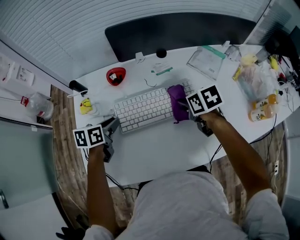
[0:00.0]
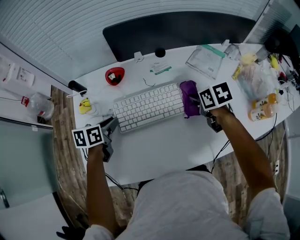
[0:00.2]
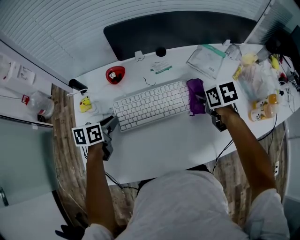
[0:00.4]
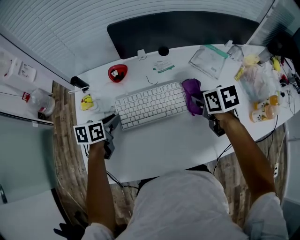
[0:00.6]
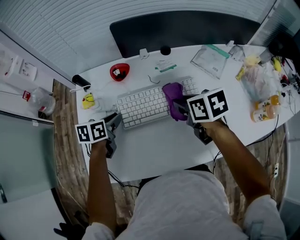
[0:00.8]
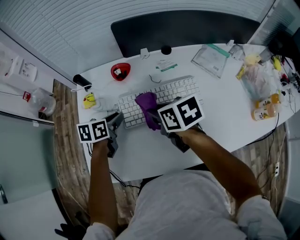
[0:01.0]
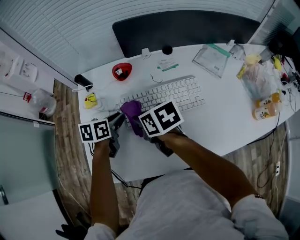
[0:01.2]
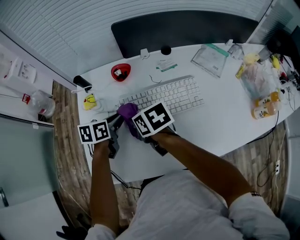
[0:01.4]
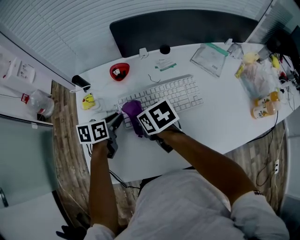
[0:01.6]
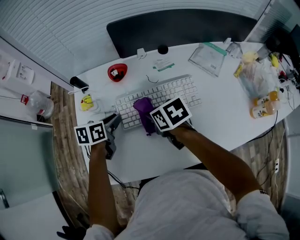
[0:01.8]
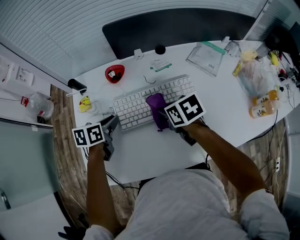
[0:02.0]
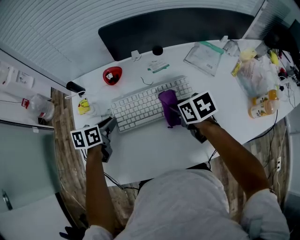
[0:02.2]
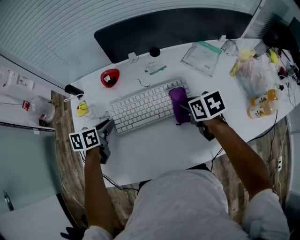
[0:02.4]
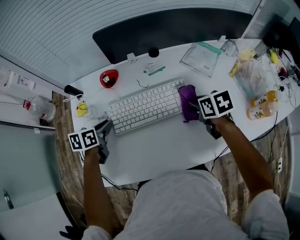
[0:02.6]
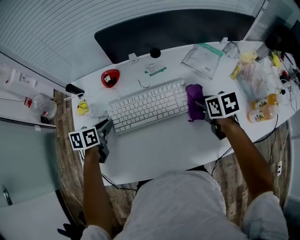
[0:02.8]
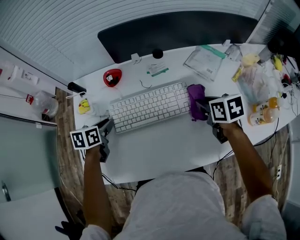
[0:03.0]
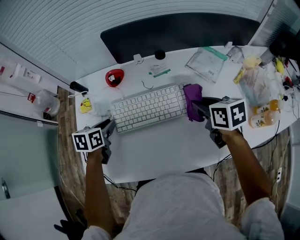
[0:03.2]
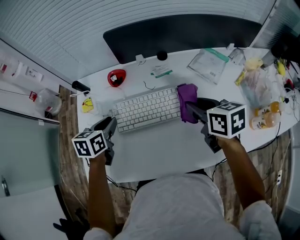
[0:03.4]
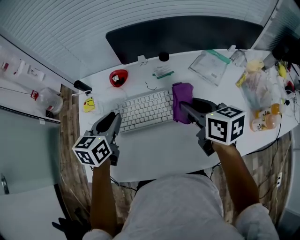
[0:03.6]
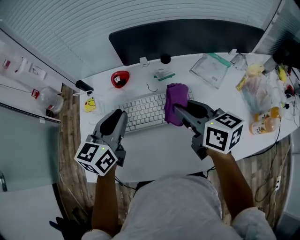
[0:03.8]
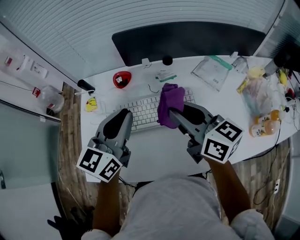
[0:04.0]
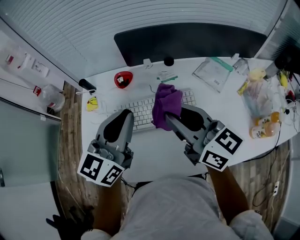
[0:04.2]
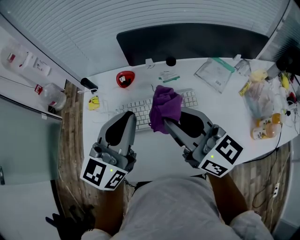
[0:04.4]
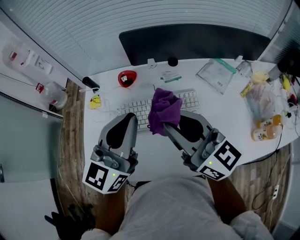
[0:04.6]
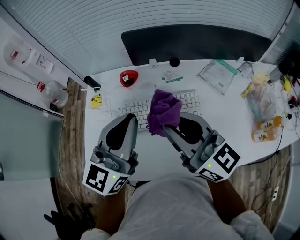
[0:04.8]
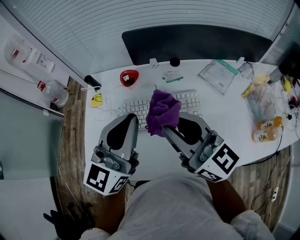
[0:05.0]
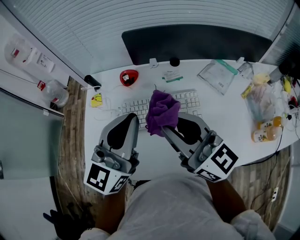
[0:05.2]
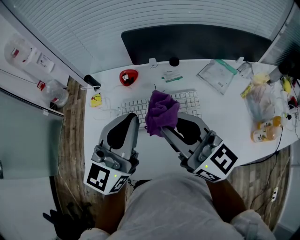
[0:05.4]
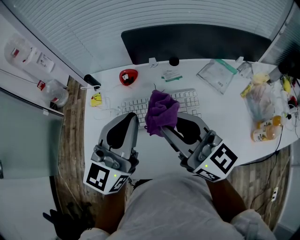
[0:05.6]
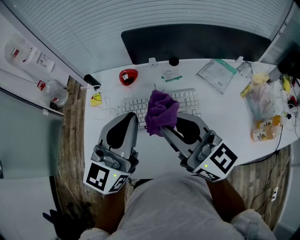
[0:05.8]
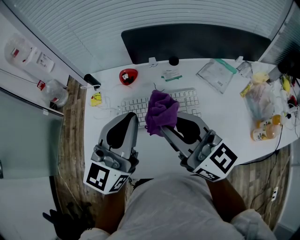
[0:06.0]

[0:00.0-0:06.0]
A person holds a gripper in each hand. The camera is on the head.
0:00.0 to 0:01.6: The right gripper goes about 20 cm to the left.
0:01.6 to 0:03.0: The right gripper travels to the right by roughly 30 cm.
0:03.0 to 0:04.4: The left gripper heads upward and to the right, covering some 25 cm, and points its fingers roughly 50 degrees further upward, while the right gripper heads upward and to the left, covering about 25 cm, and angles its fingers upward, by approximately 50 degrees.
0:04.4 to 0:06.0: The grippers move only a little.

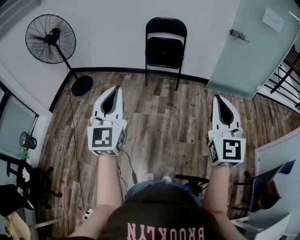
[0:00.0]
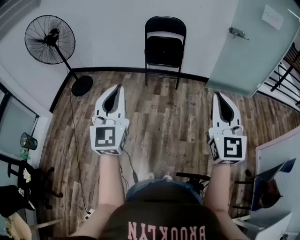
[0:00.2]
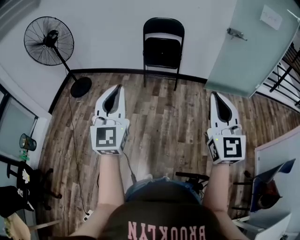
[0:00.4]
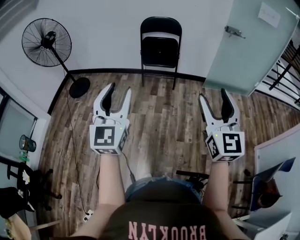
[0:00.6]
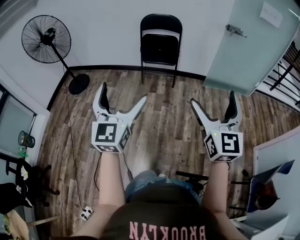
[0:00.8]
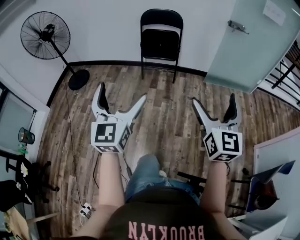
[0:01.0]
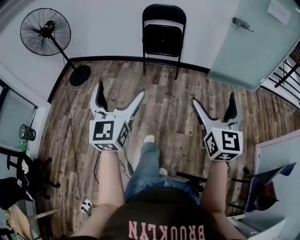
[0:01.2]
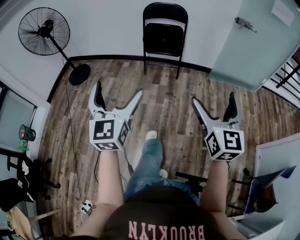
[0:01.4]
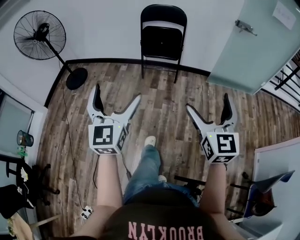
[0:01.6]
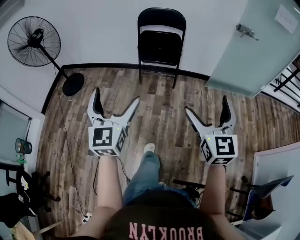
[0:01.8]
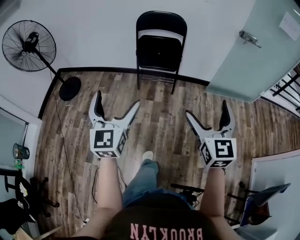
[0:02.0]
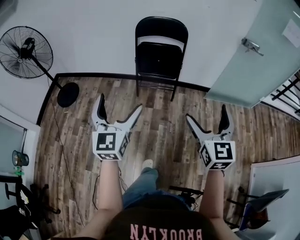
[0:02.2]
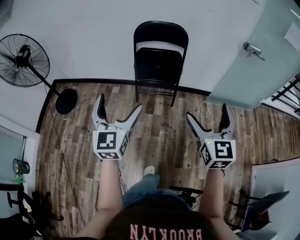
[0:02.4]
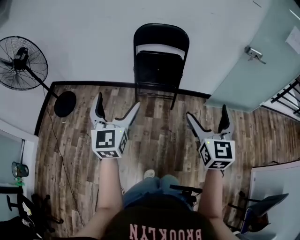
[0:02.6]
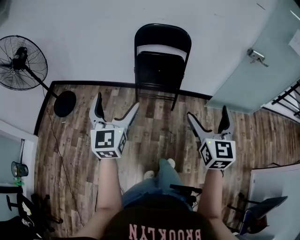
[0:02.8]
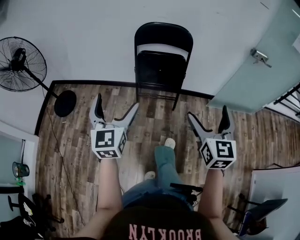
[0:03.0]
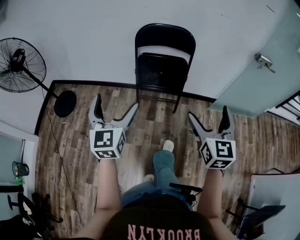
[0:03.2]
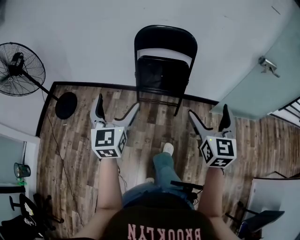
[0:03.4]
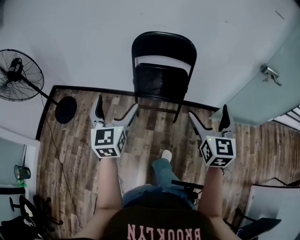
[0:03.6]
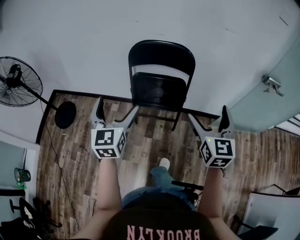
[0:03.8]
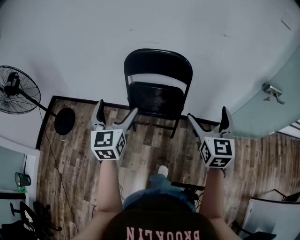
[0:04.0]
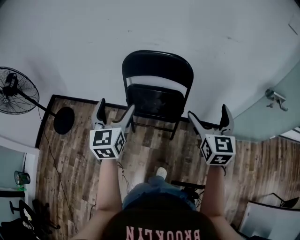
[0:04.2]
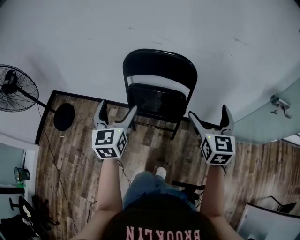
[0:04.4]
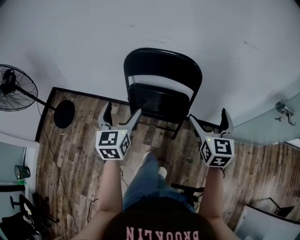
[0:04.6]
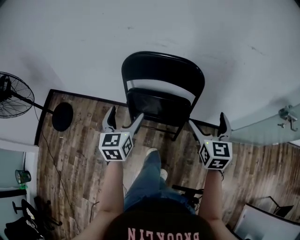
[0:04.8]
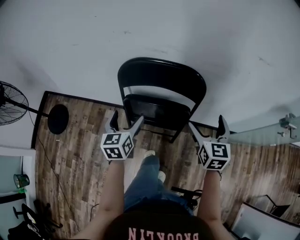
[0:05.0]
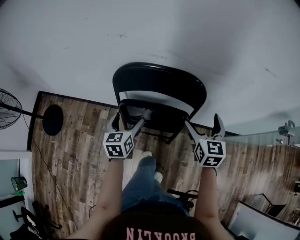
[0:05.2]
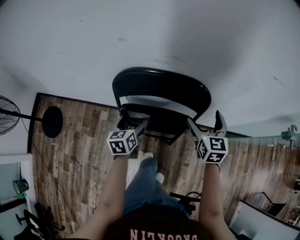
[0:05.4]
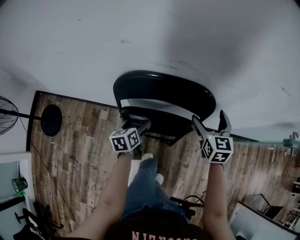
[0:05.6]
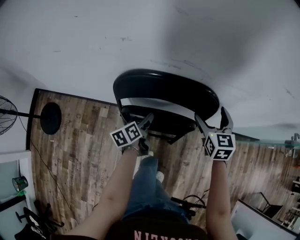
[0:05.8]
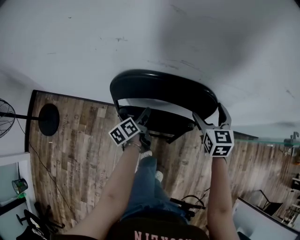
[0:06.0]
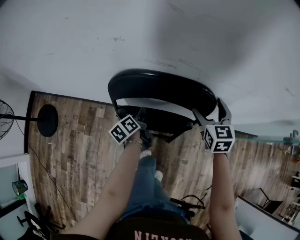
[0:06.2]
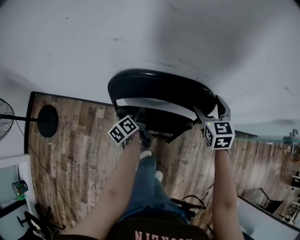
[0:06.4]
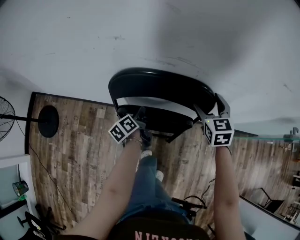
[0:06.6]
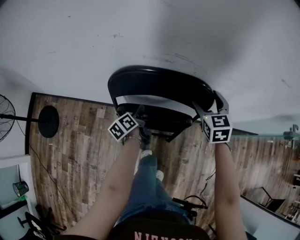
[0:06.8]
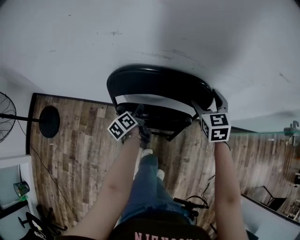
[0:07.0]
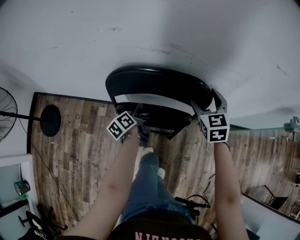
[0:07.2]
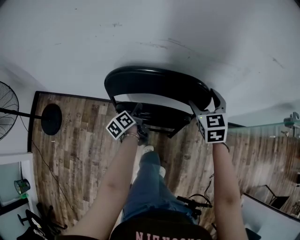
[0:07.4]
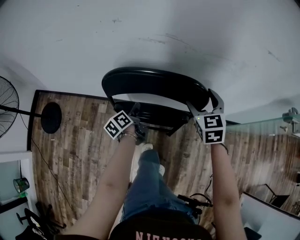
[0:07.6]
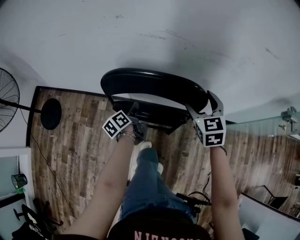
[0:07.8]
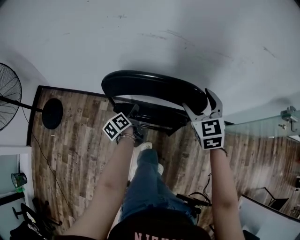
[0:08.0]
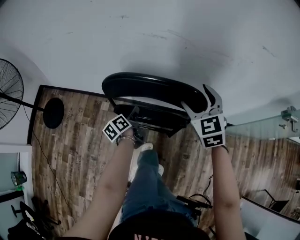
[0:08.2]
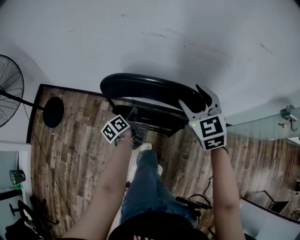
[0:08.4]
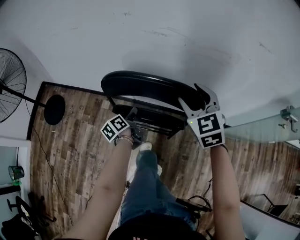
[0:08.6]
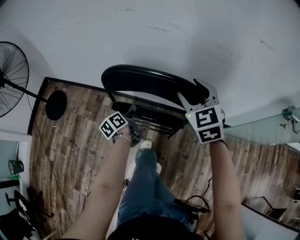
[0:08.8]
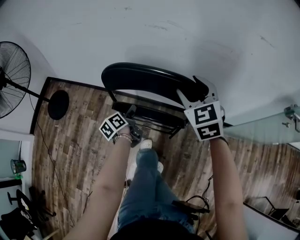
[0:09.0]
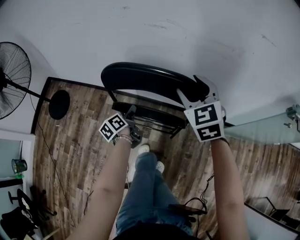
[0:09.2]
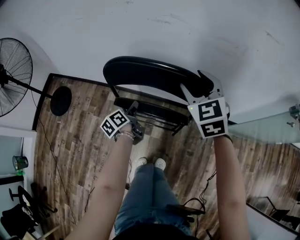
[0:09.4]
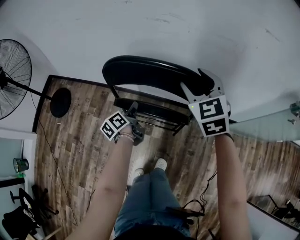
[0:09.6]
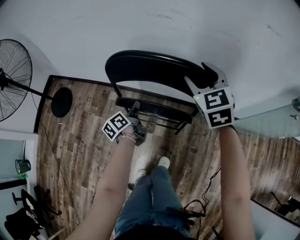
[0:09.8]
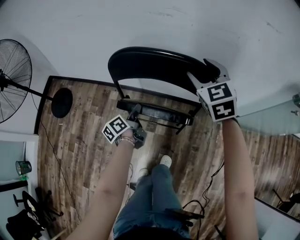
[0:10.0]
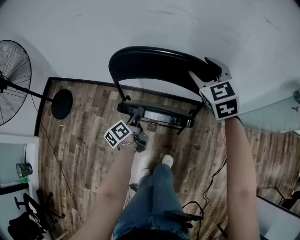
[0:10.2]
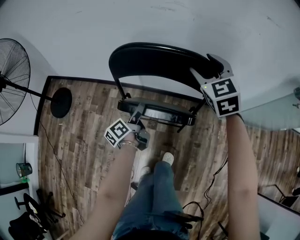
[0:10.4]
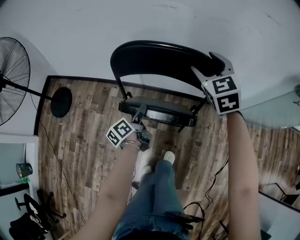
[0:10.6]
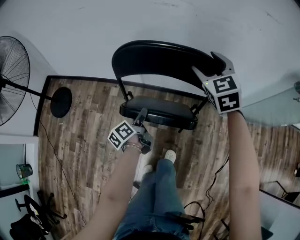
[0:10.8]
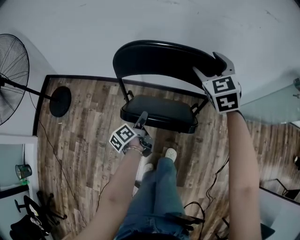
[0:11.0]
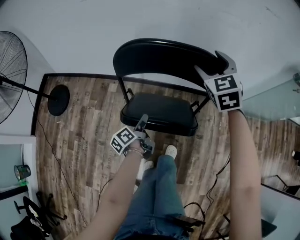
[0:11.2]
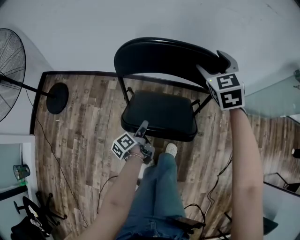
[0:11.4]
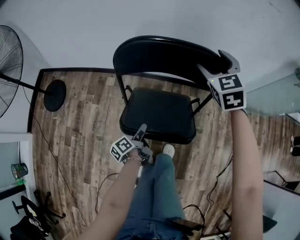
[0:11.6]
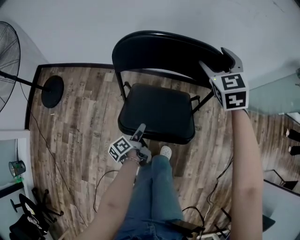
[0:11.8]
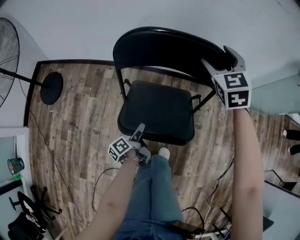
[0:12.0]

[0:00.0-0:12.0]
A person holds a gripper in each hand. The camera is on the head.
0:00.0 to 0:01.6: The left gripper travels forward, downward and to the right by about 15 cm, and opens its fingers. The right gripper goes some 15 cm forward and downward, and opens up.
0:01.6 to 0:03.0: The two grippers go about 40 cm forward.
0:03.0 to 0:04.4: Both grippers move forward, roughly 35 cm.
0:04.4 to 0:06.0: The left gripper moves downward and forward, some 40 cm, and rotates around the line of its fingers by approximately 60 degrees, counterclockwise from behind; the right gripper heads forward and downward, covering about 30 cm.
0:06.0 to 0:07.6: Both grippers travel together backward, about 5 cm. The left gripper closes its fingers.
0:07.6 to 0:09.0: The right gripper goes roughly 10 cm backward, to the left and upward; the left gripper is displaced backward by roughly 10 cm.
0:09.0 to 0:10.4: The left gripper is displaced backward by approximately 5 cm.
0:10.4 to 0:12.0: The left gripper goes some 25 cm backward and downward, and swivels some 20 degrees, while the right gripper heads backward and downward, covering some 10 cm.

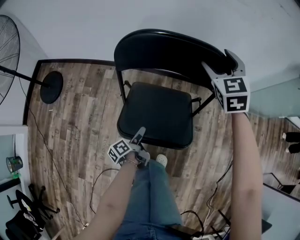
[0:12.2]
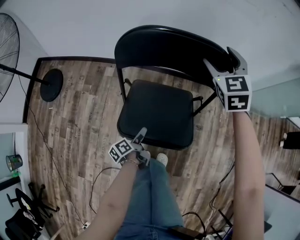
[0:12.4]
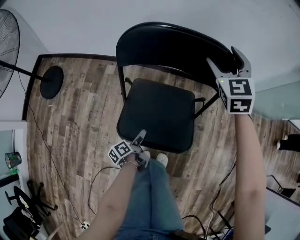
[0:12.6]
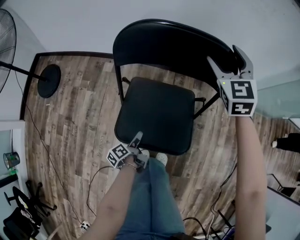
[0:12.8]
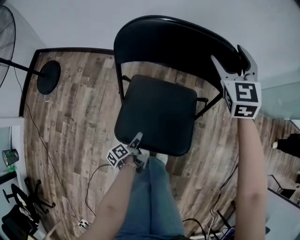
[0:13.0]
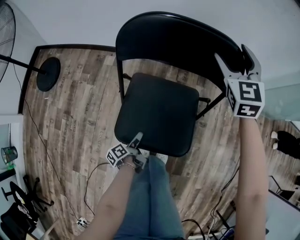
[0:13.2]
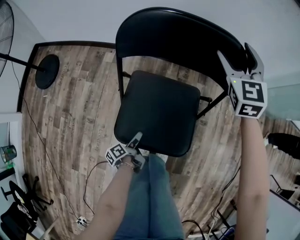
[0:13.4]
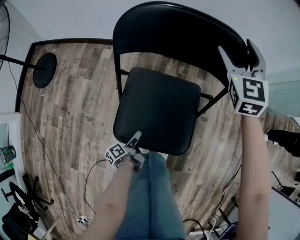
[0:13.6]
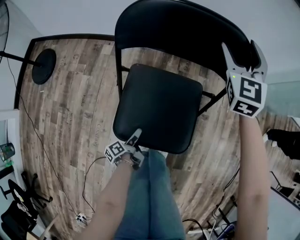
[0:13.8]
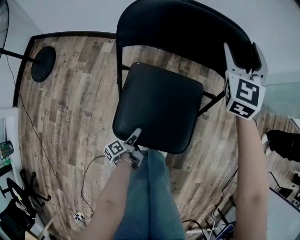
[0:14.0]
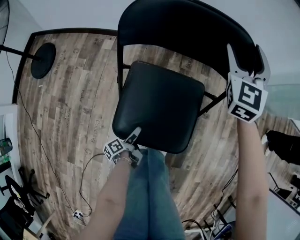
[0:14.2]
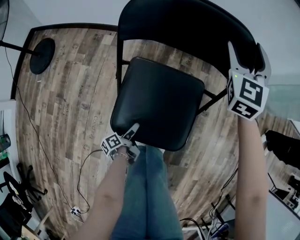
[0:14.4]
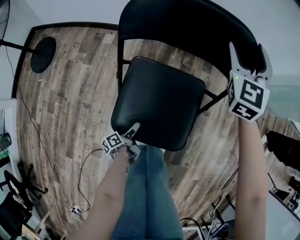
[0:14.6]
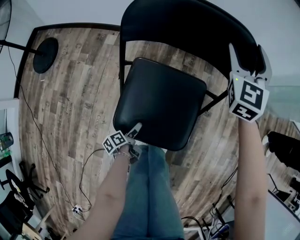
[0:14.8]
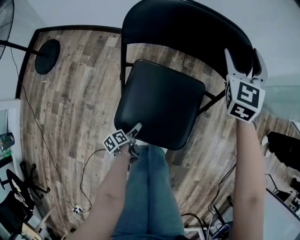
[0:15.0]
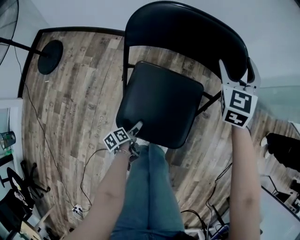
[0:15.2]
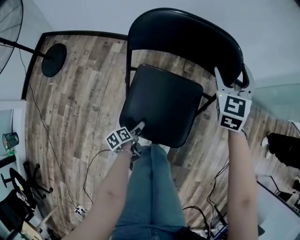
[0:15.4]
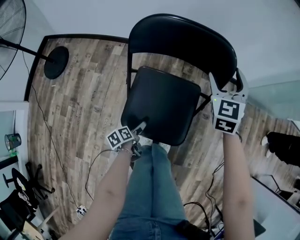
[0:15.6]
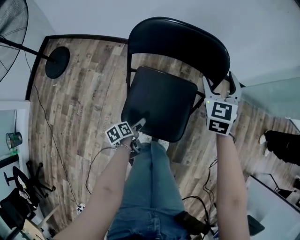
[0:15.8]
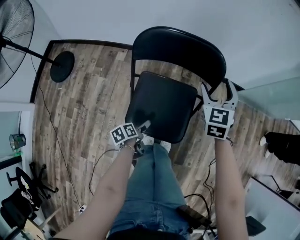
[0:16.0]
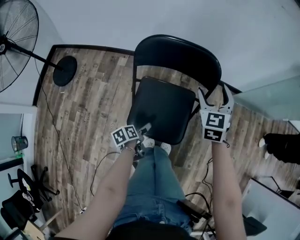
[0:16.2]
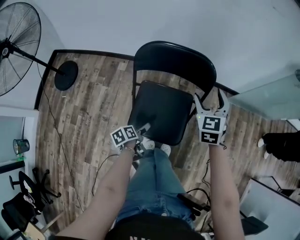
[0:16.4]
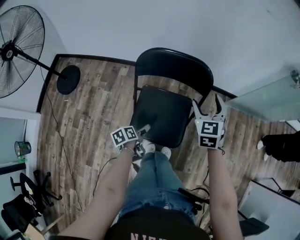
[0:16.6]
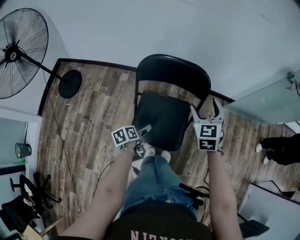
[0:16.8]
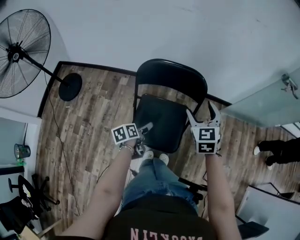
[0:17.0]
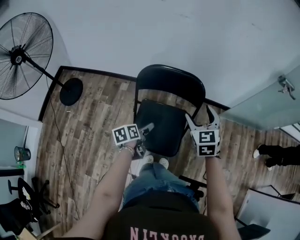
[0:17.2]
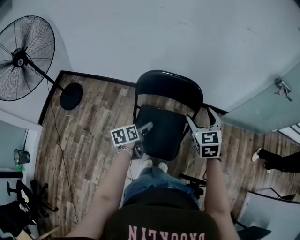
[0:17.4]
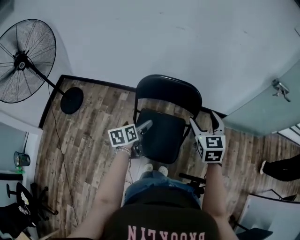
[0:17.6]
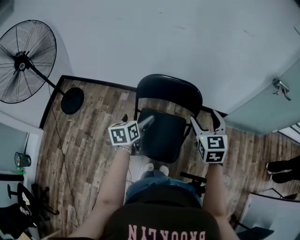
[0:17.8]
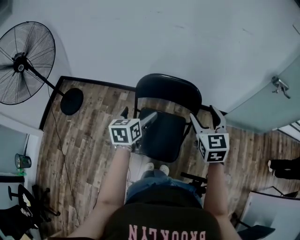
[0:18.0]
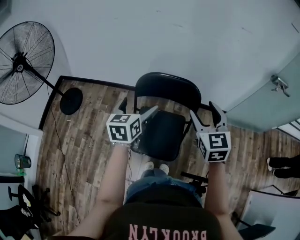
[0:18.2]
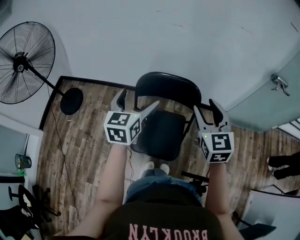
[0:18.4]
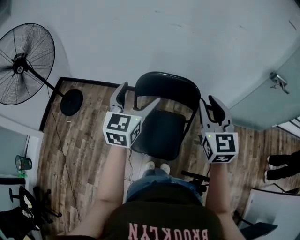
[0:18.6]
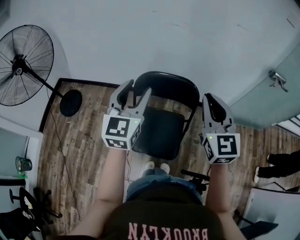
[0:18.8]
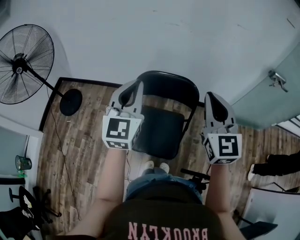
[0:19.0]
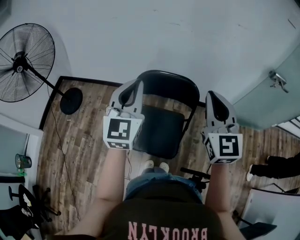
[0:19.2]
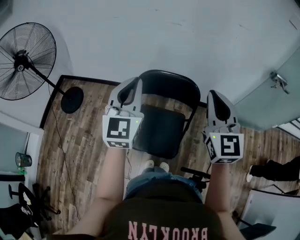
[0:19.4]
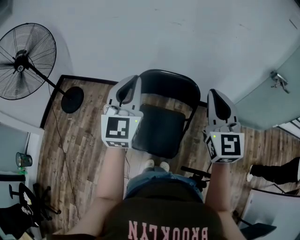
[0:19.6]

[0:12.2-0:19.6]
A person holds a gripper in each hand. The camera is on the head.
0:12.2 to 0:13.6: The left gripper travels downward and backward by some 20 cm; the right gripper shifts about 10 cm downward.
0:13.6 to 0:15.2: The right gripper shifts by approximately 5 cm; the left gripper swivels roughly 20 degrees, and opens.
0:15.2 to 0:16.6: The right gripper moves backward and upward, roughly 15 cm. The left gripper travels upward by some 25 cm.
0:16.6 to 0:18.2: The right gripper travels upward by about 15 cm; the left gripper shifts approximately 35 cm upward, and rolls clockwise, seen from behind, by approximately 50 degrees.
0:18.2 to 0:19.6: Both grippers move upward, about 15 cm. The right gripper closes up. The left gripper swivels about 40 degrees, and closes up.
